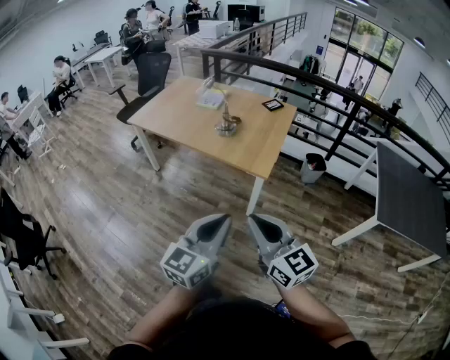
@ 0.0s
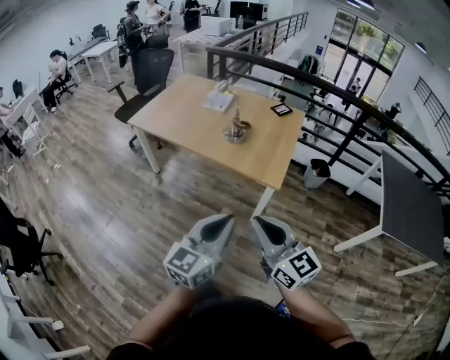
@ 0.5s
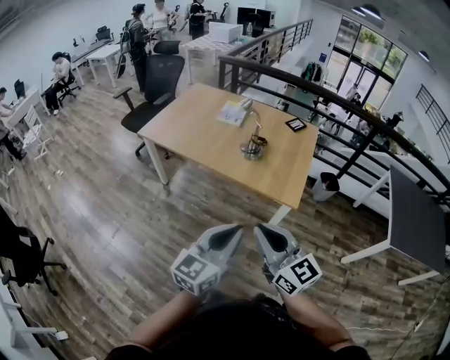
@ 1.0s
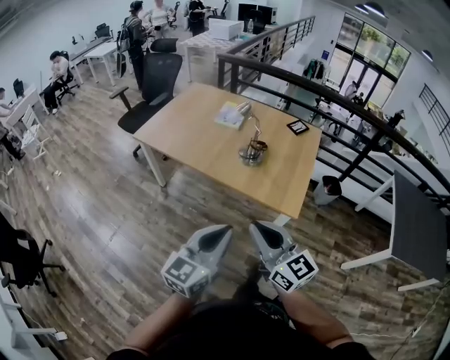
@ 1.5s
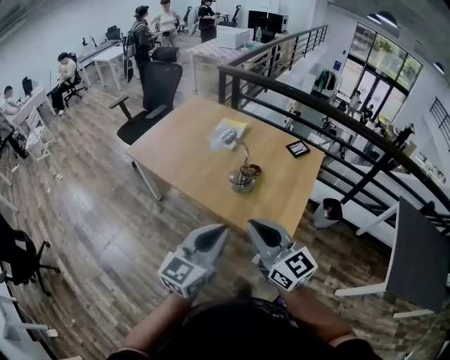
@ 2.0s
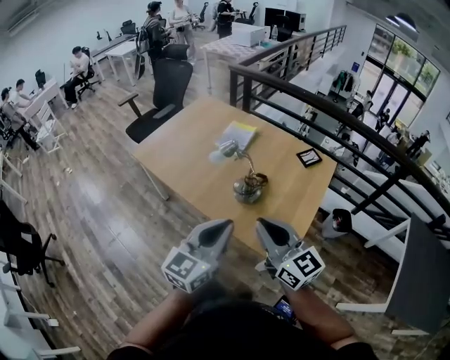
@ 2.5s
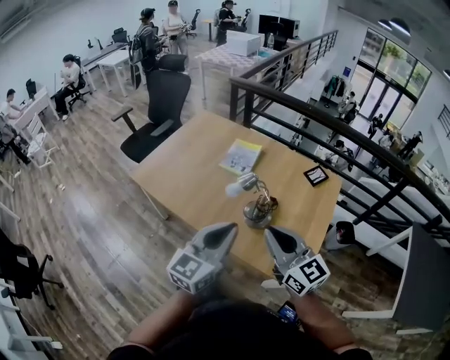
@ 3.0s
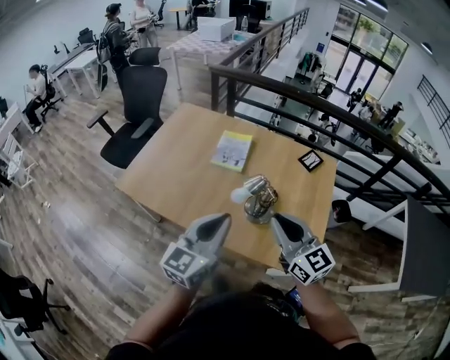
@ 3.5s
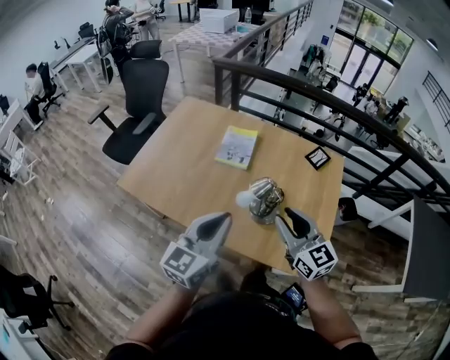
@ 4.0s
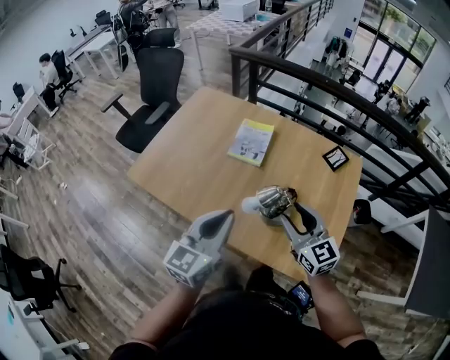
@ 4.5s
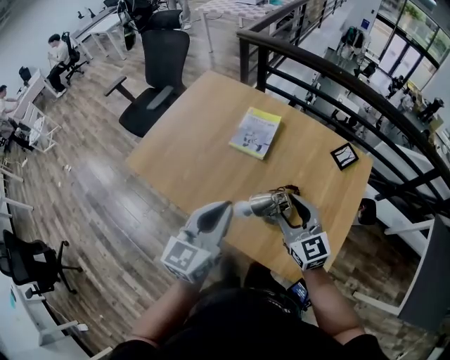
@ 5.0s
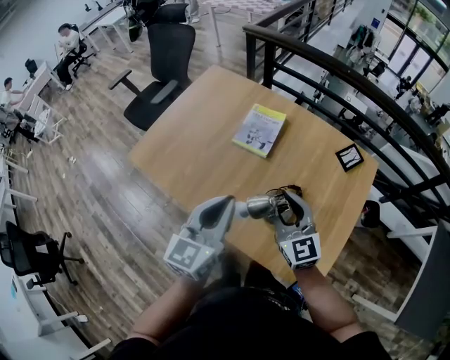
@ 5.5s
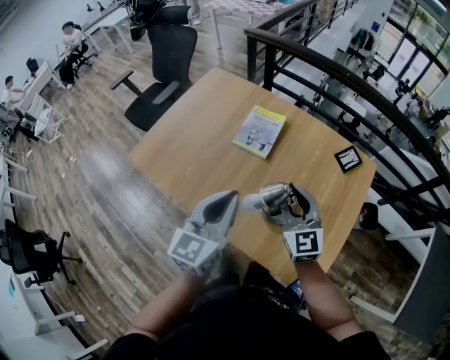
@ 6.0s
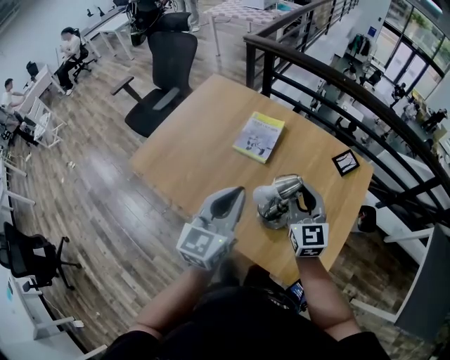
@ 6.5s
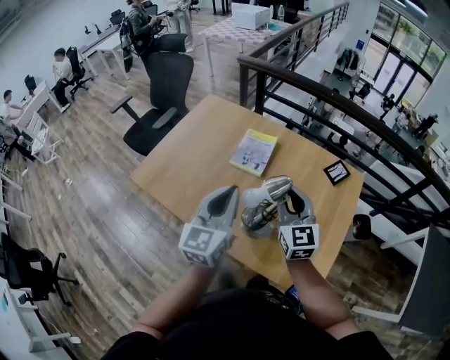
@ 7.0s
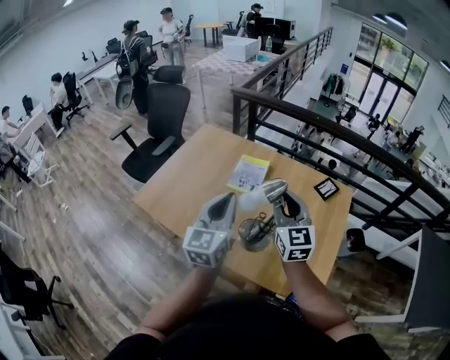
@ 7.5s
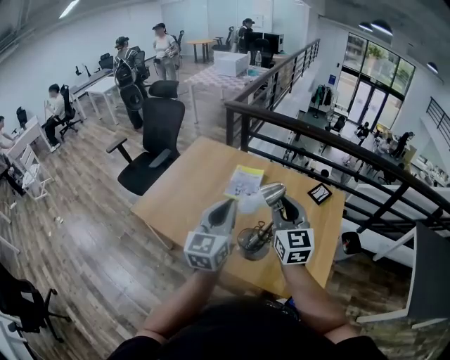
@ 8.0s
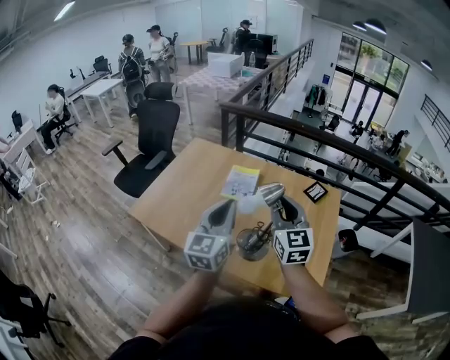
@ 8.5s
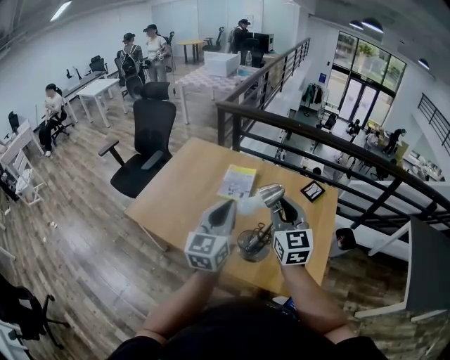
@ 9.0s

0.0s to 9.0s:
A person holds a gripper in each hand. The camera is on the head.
0.0s to 2.0s: The grippers both shift forward by roughly 35 cm.
2.0s to 4.5s: Both grippers move forward, about 30 cm. The right gripper opens up.
4.5s to 7.0s: The grippers both shift forward by about 10 cm. The right gripper closes.
7.0s to 9.0s: The right gripper heads upward and backward, covering roughly 10 cm. The left gripper shifts by about 5 cm.

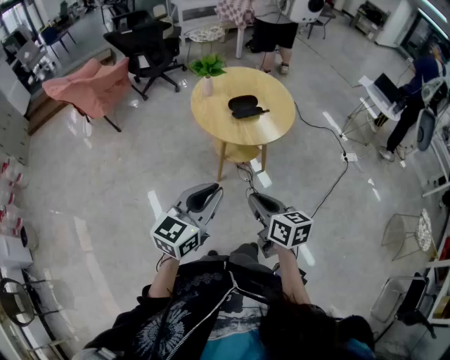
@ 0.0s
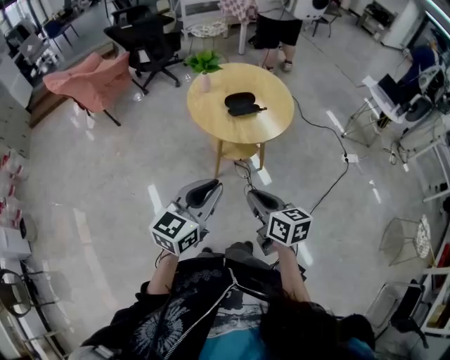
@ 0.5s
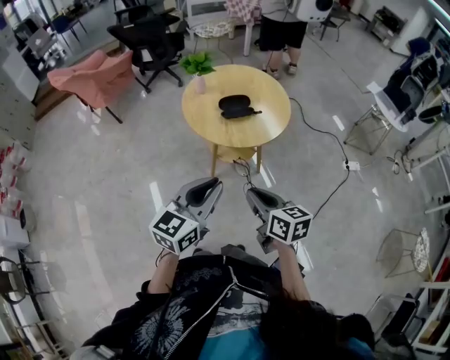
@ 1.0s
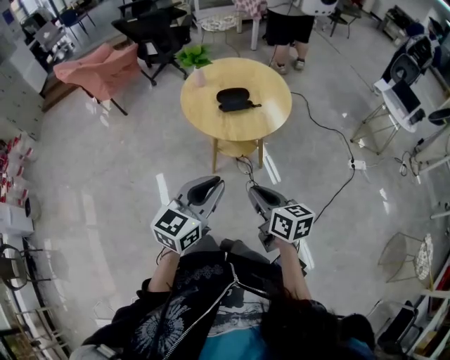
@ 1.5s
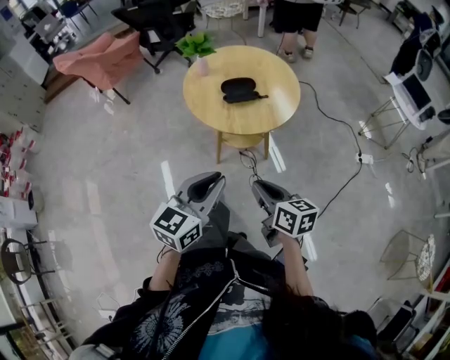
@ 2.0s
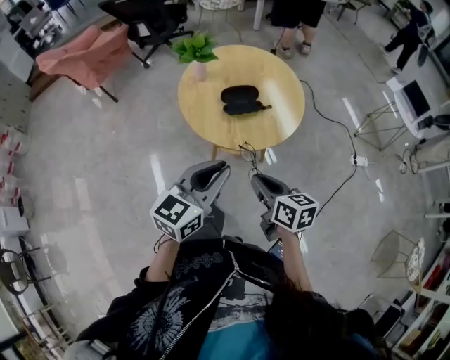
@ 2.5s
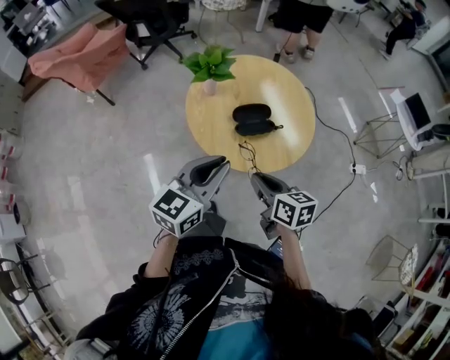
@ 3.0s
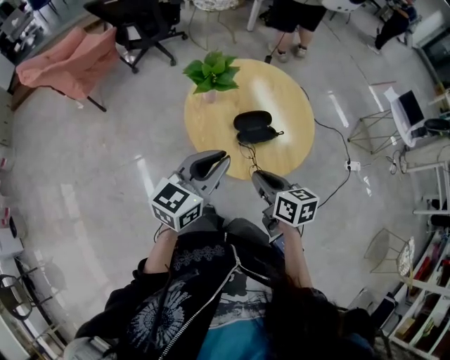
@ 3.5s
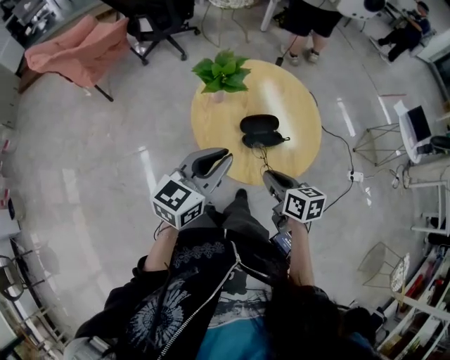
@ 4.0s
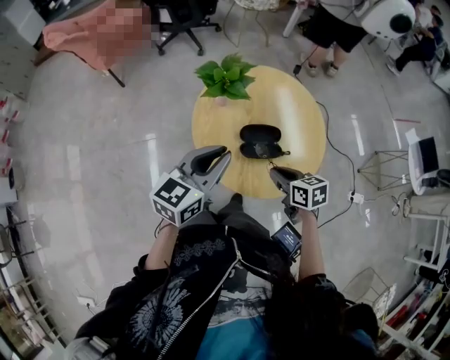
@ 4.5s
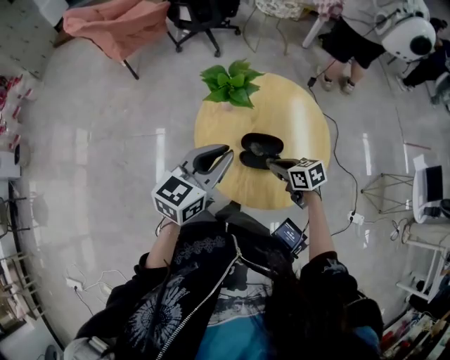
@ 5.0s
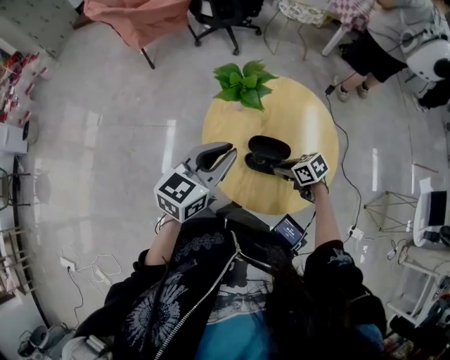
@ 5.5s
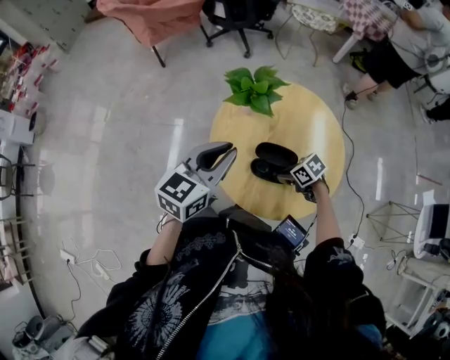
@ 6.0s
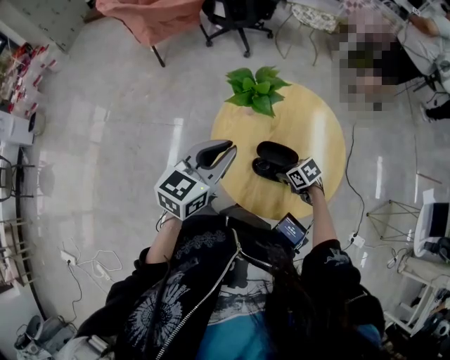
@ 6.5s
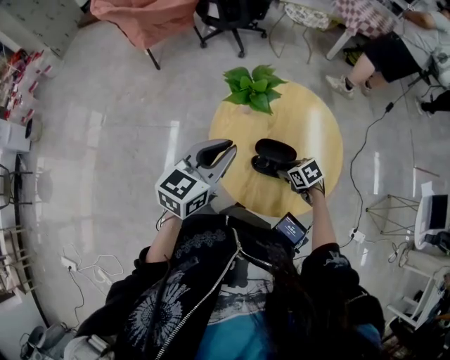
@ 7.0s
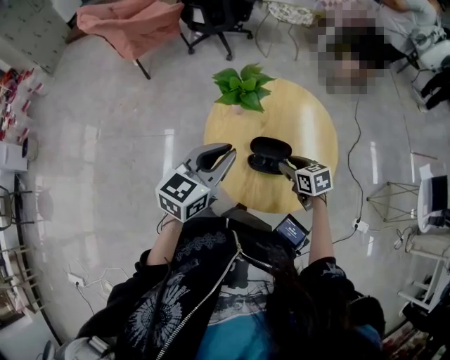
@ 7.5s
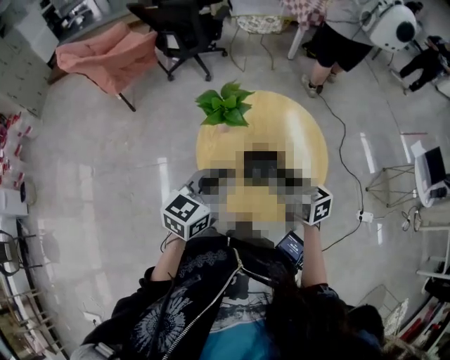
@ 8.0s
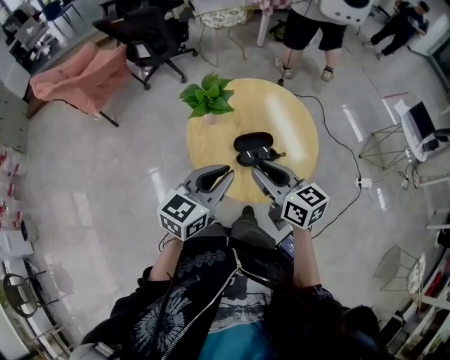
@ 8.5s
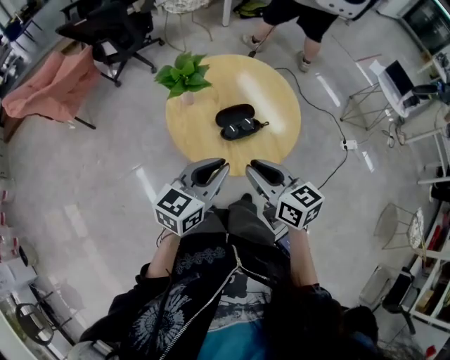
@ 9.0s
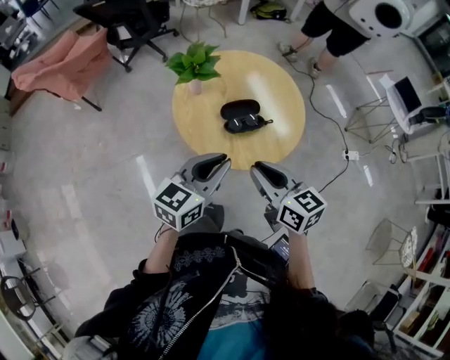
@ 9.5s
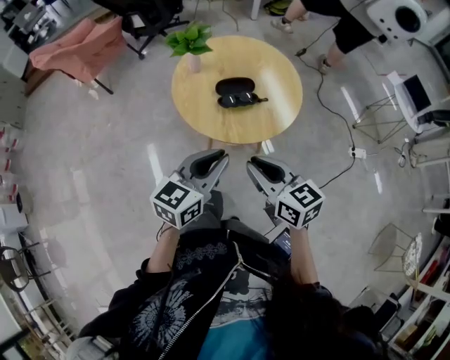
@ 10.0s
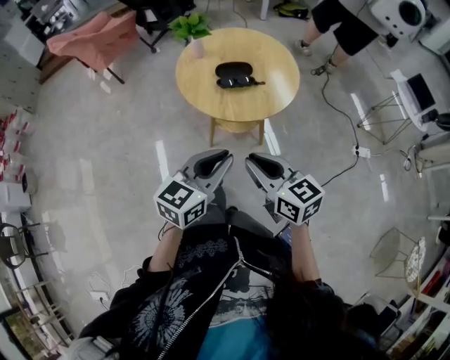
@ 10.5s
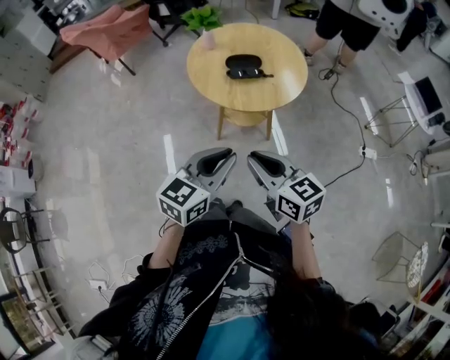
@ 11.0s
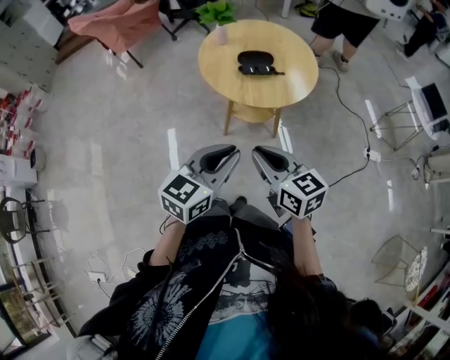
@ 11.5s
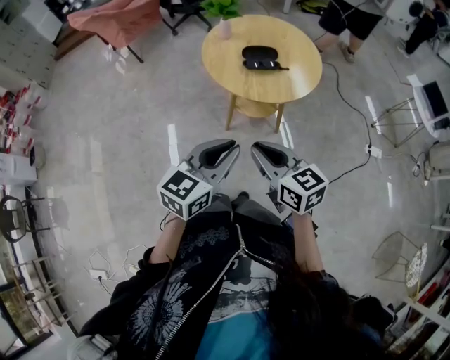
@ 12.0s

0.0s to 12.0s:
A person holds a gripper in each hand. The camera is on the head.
0.0s to 2.0s: The left gripper heads to the right, covering some 15 cm. The right gripper shifts roughly 15 cm to the right and forward.
2.0s to 4.0s: The right gripper moves forward, some 30 cm; the left gripper goes about 35 cm forward and to the left.
4.0s to 6.0s: The left gripper moves roughly 10 cm, and turns by some 30 degrees. The right gripper heads downward, covering roughly 15 cm, and swivels about 70 degrees.
6.0s to 8.0s: The right gripper travels upward by approximately 20 cm, turns by roughly 60 degrees, and opens its fingers.
8.0s to 10.0s: Both grippers travel together backward, some 25 cm.
10.0s to 12.0s: Both grippers travel together backward, some 15 cm.

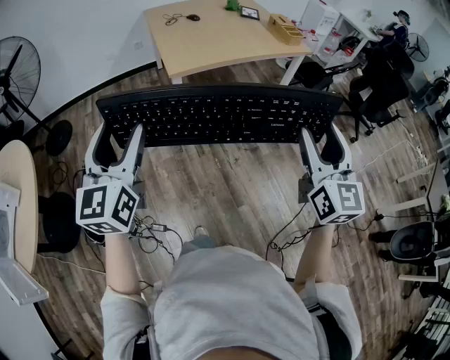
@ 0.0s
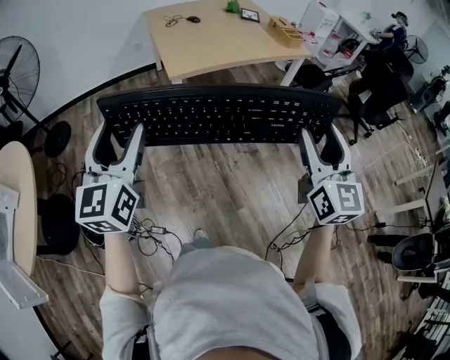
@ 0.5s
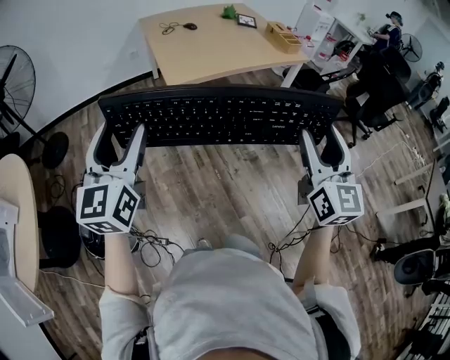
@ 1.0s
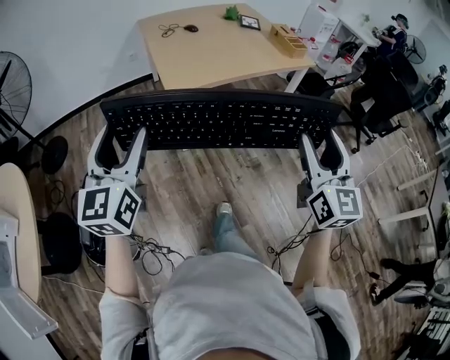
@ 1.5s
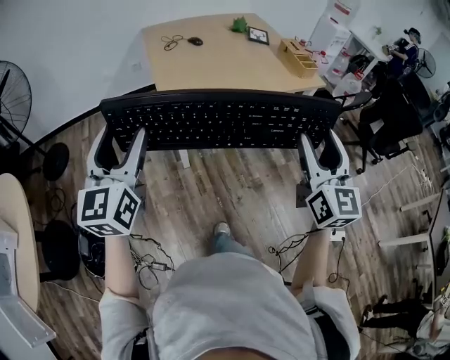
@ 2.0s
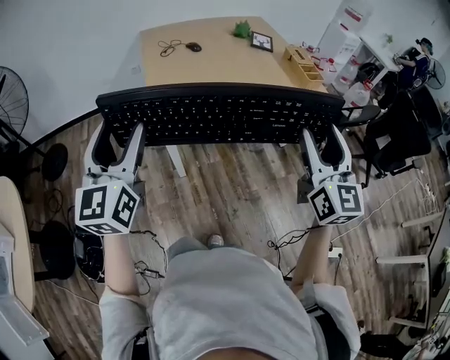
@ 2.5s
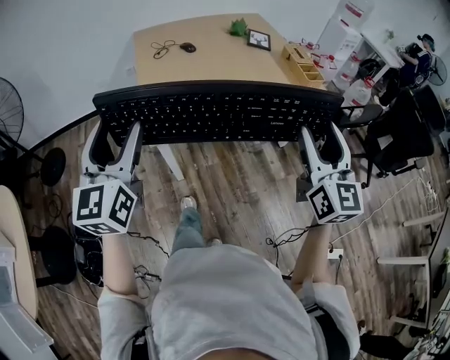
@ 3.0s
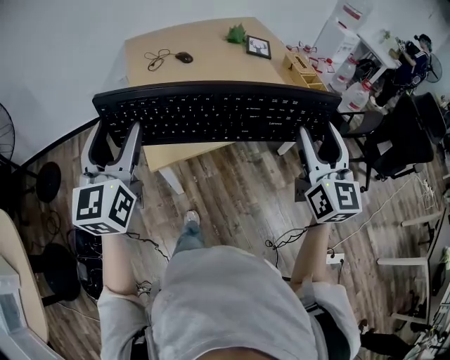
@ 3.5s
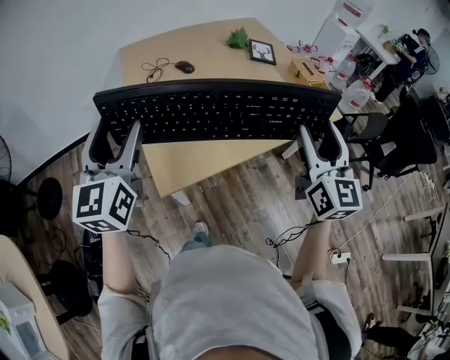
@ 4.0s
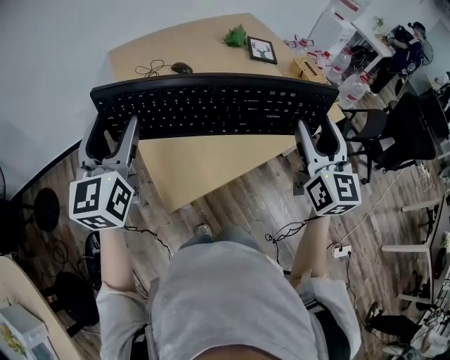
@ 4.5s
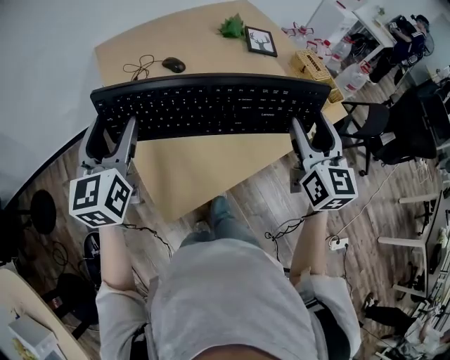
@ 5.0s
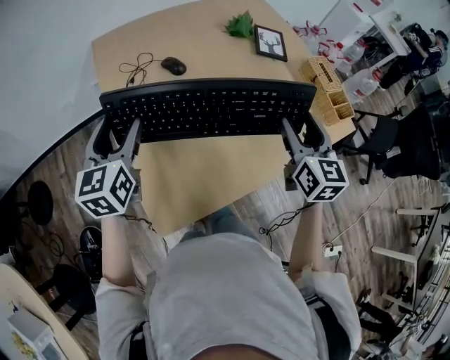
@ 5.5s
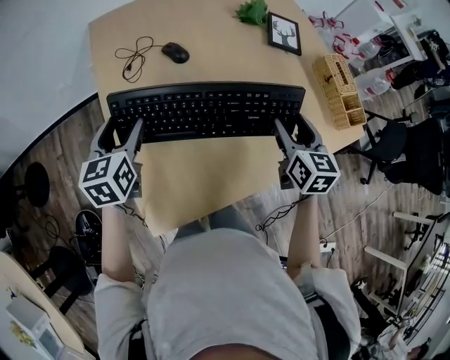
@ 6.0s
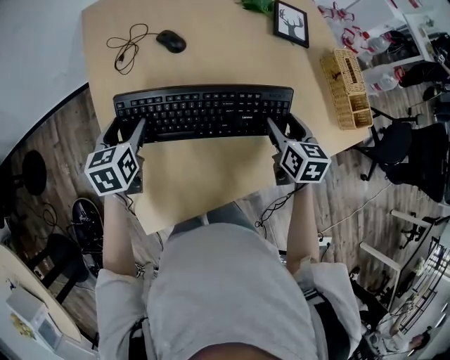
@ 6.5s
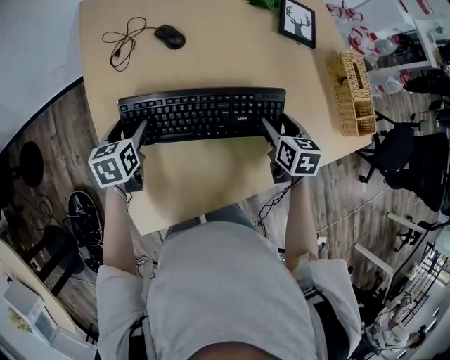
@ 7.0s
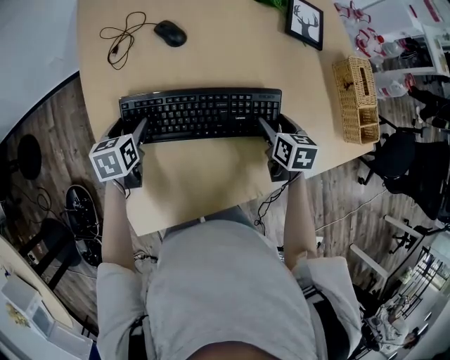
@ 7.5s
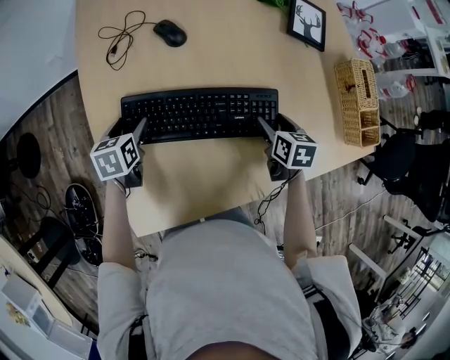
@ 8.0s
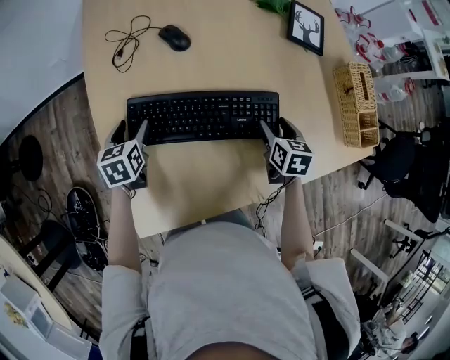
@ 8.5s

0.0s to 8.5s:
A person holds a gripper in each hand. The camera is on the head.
0.0s to 2.0s: There are only small adjustments of the grippers.
4.0s to 6.5s: The two grippers go about 40 cm forward and downward. The left gripper points its fingers some 40 degrees further downward; the right gripper angles its fingers downward, by about 40 degrees.
6.5s to 8.5s: Both grippers travel together downward, approximately 10 cm.
